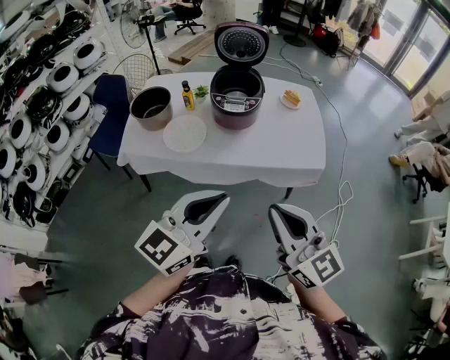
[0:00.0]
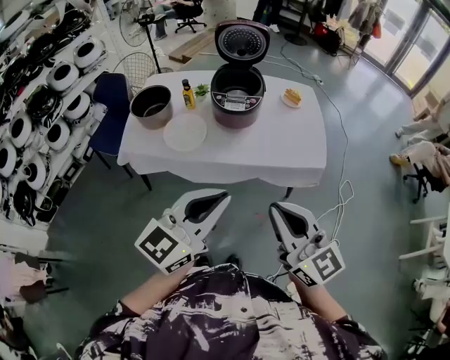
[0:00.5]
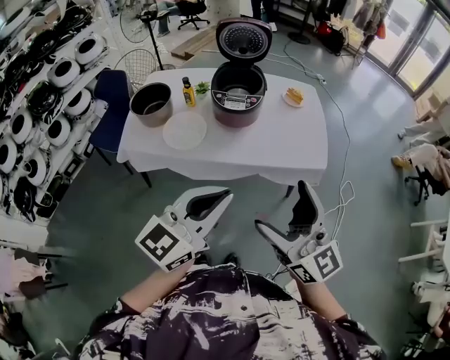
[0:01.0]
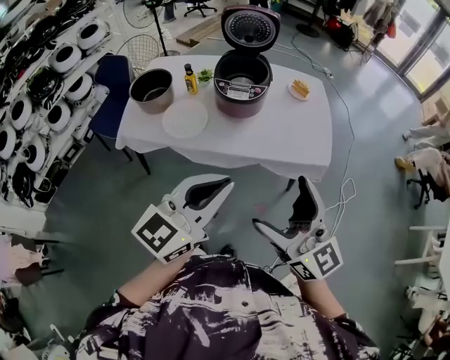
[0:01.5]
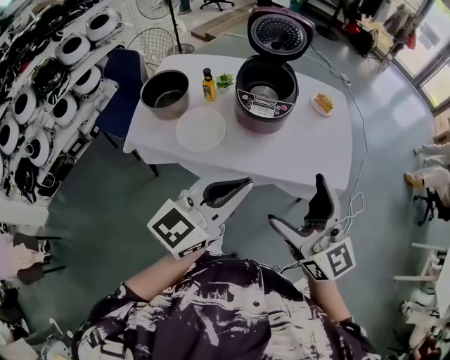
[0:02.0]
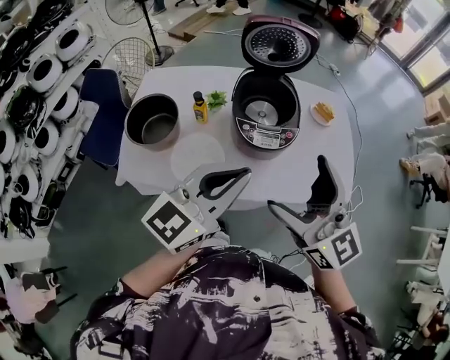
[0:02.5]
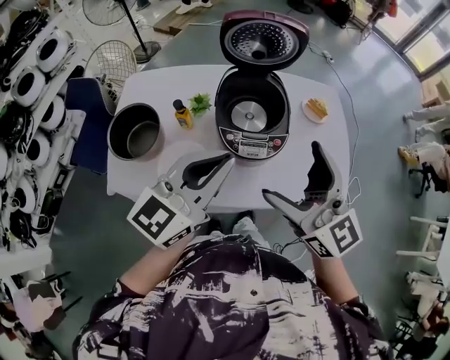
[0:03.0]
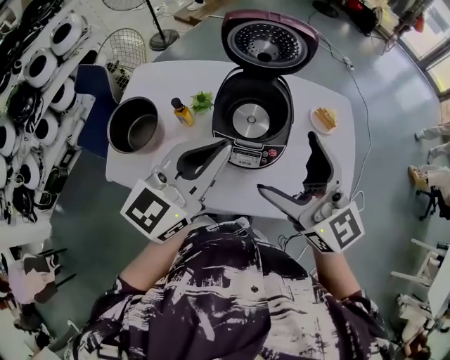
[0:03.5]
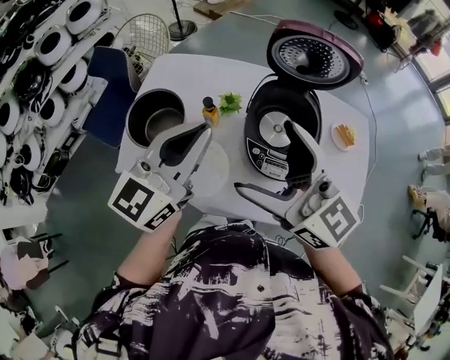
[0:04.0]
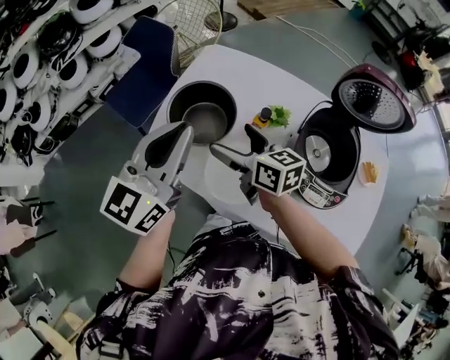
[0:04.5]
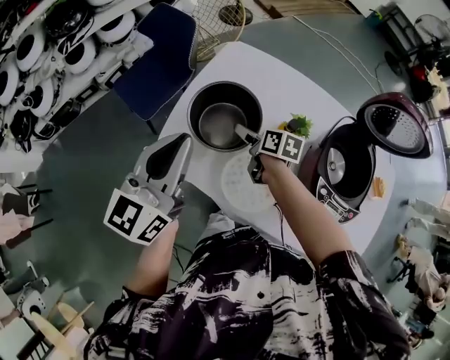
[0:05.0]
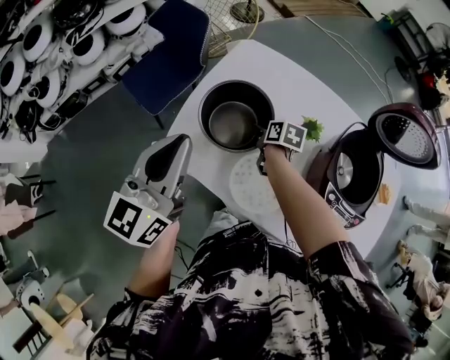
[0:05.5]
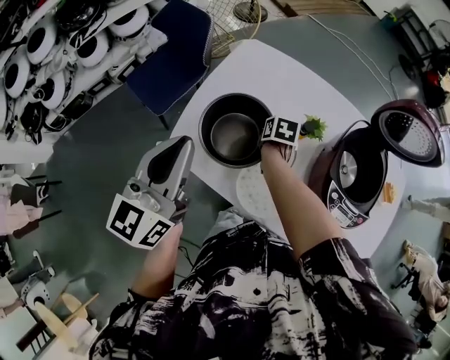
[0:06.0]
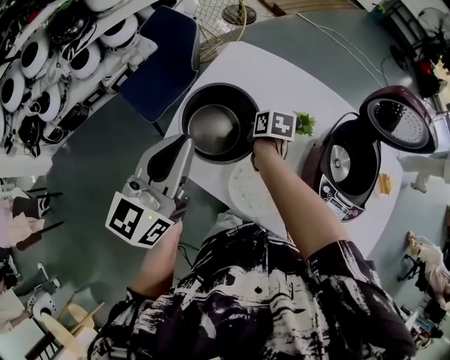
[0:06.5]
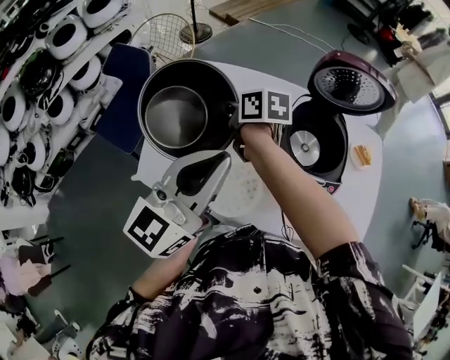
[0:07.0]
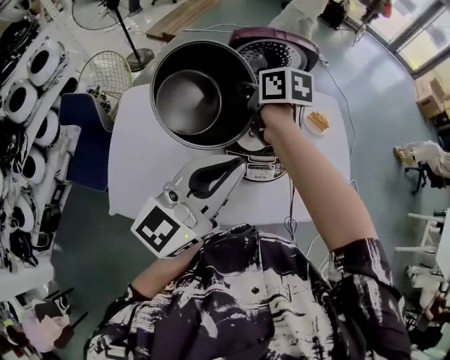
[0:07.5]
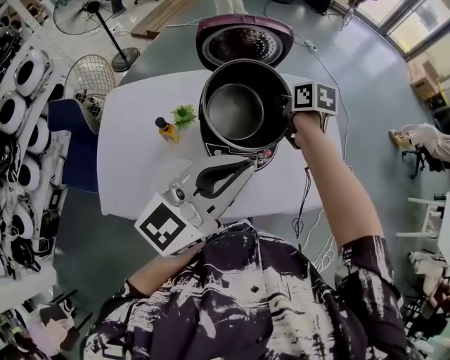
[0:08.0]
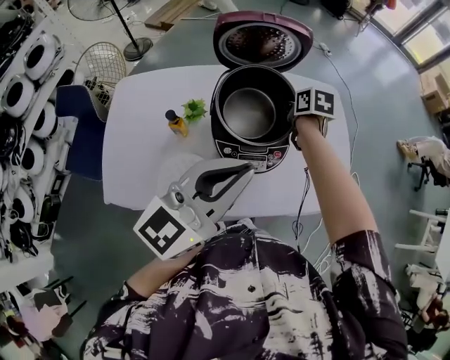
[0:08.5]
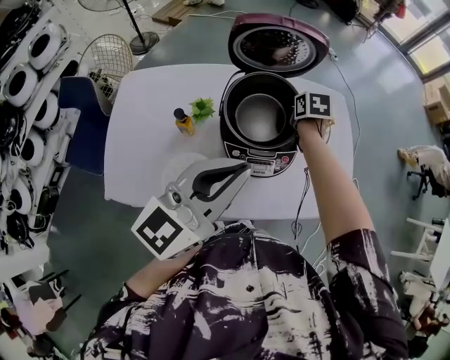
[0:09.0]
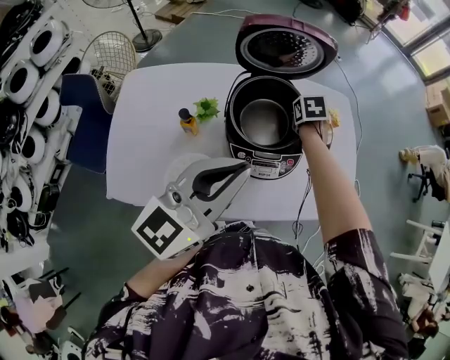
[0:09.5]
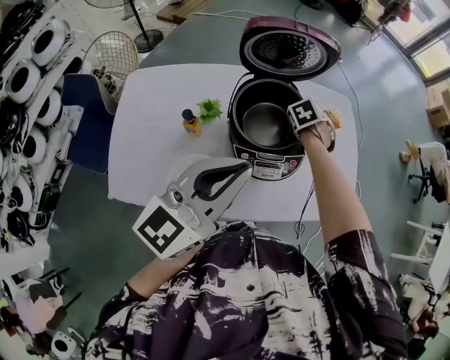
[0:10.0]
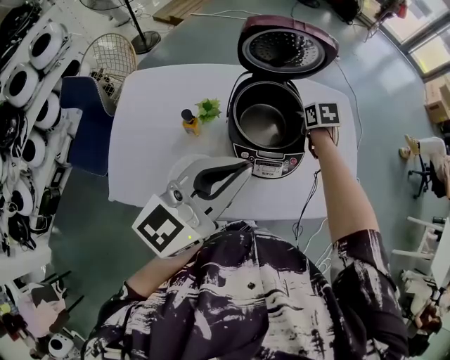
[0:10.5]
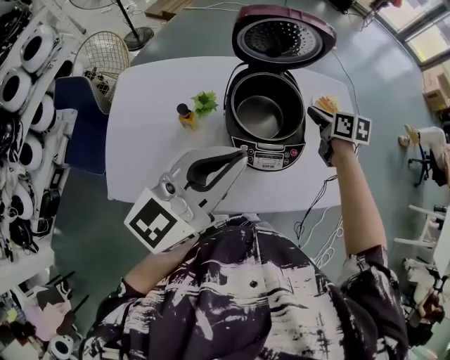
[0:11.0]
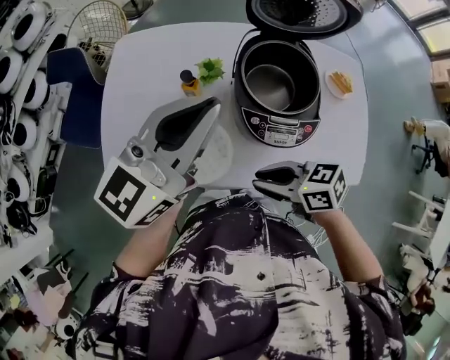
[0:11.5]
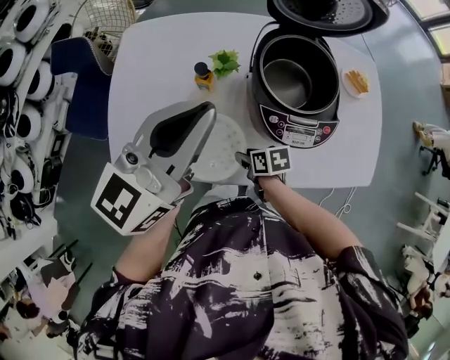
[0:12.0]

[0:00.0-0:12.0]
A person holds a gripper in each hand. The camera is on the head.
0:00.0 to 0:02.0: The two grippers go approximately 15 cm forward. The right gripper opens up.
0:02.0 to 0:04.0: The two grippers go about 35 cm forward and to the left.
0:04.0 to 0:06.0: The left gripper heads to the left, covering some 30 cm, and swivels roughly 30 degrees. The right gripper is displaced downward and forward by approximately 50 cm, angles its fingers downward, by approximately 70 degrees, and closes its fingers.
0:06.0 to 0:08.0: The two grippers travel together, roughly 50 cm. The left gripper turns by about 60 degrees, while the right gripper changes its angle by roughly 30 degrees.
0:08.0 to 0:10.0: The left gripper travels to the left by some 10 cm, while the right gripper shifts roughly 10 cm downward, and changes its angle by some 50 degrees.
0:10.0 to 0:12.0: The right gripper ends up some 40 cm from where it was, and rotates roughly 50 degrees; the left gripper moves roughly 15 cm.

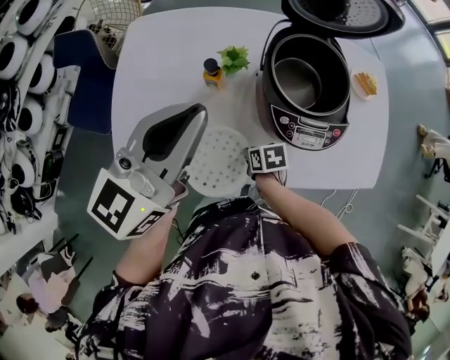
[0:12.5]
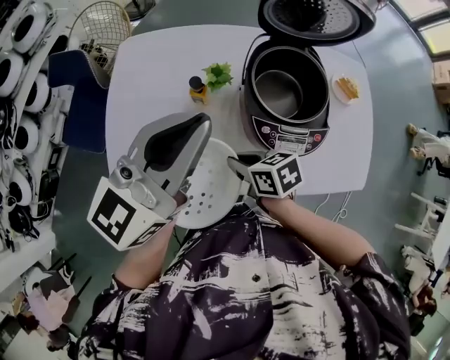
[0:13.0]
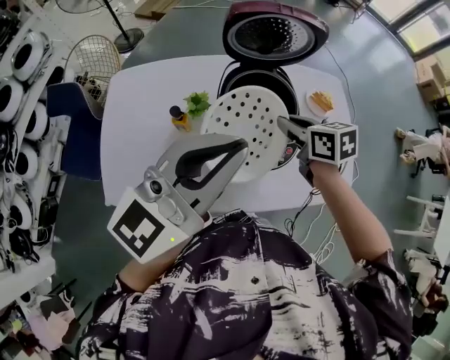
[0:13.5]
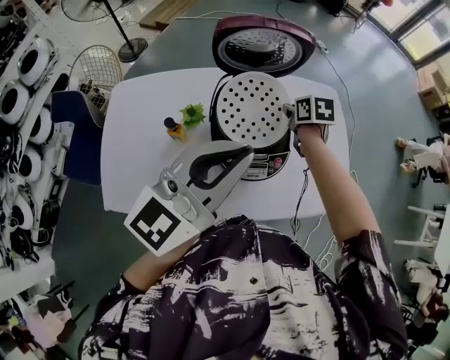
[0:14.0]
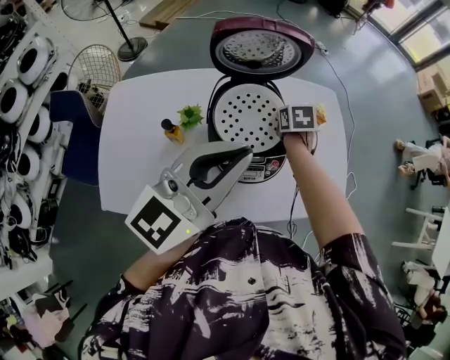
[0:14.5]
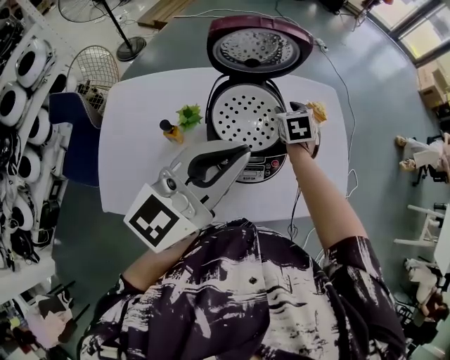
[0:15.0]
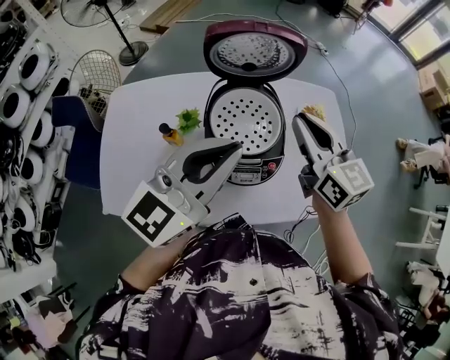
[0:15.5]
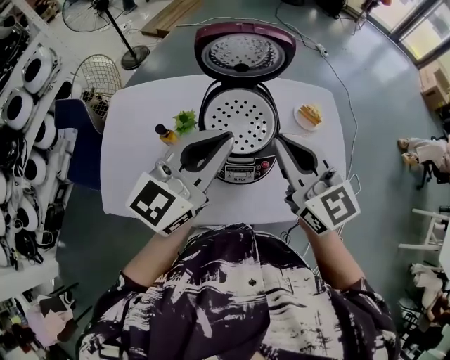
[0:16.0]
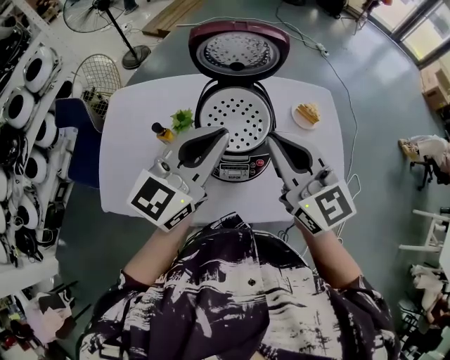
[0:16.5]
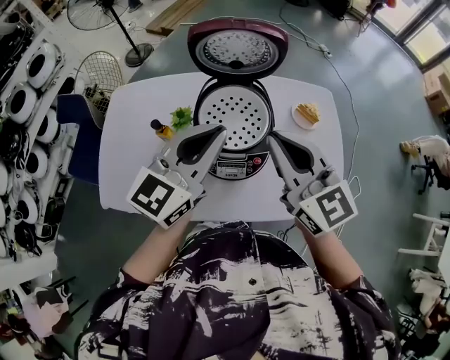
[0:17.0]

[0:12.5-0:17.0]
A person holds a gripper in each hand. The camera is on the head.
0:12.5 to 0:14.5: The right gripper moves roughly 40 cm, and swivels about 30 degrees. The left gripper moves roughly 20 cm.
0:14.5 to 0:17.0: The left gripper moves approximately 5 cm. Meanwhile the right gripper is displaced upward and backward by roughly 30 cm, and tips its fingers upward by about 50 degrees.

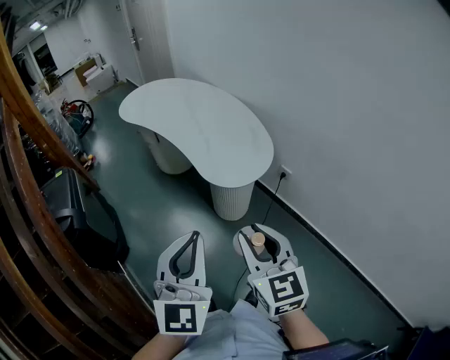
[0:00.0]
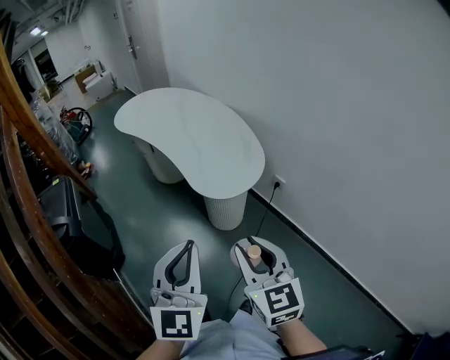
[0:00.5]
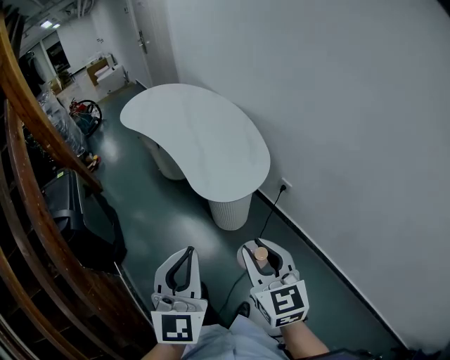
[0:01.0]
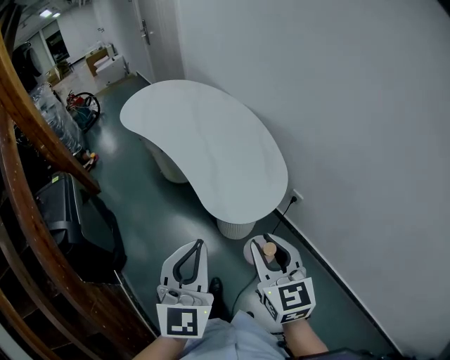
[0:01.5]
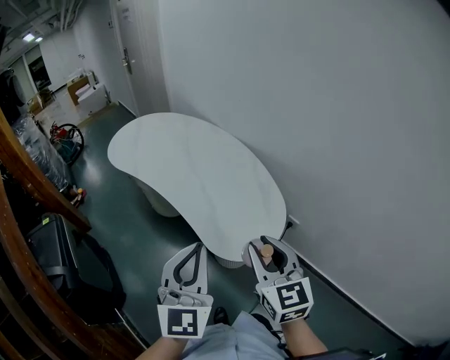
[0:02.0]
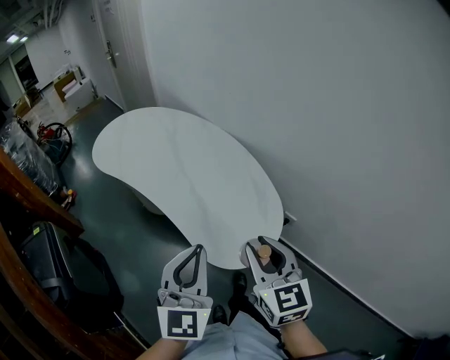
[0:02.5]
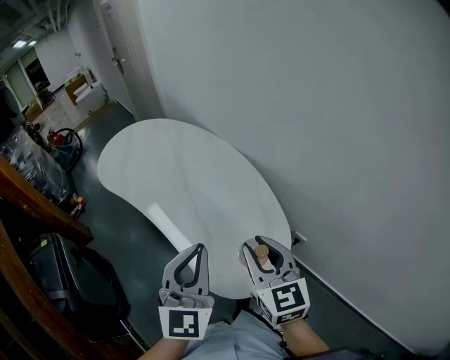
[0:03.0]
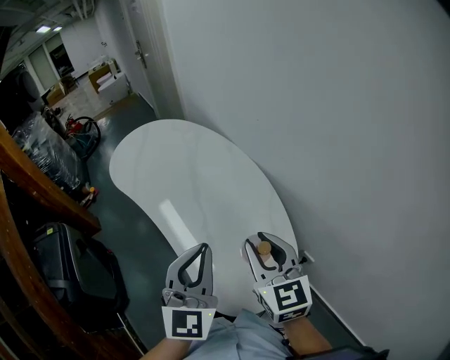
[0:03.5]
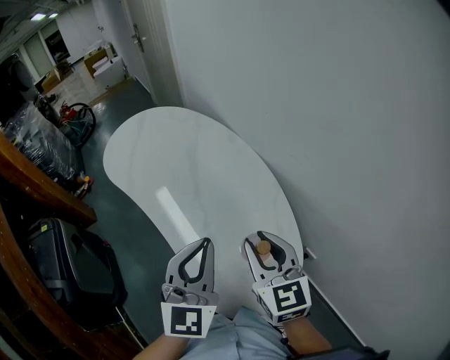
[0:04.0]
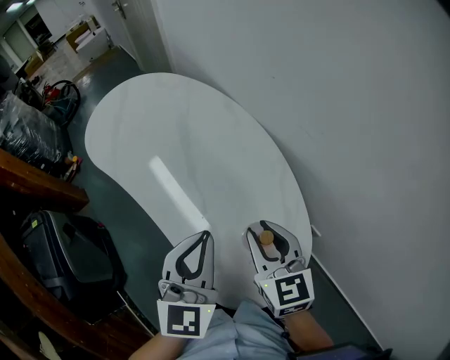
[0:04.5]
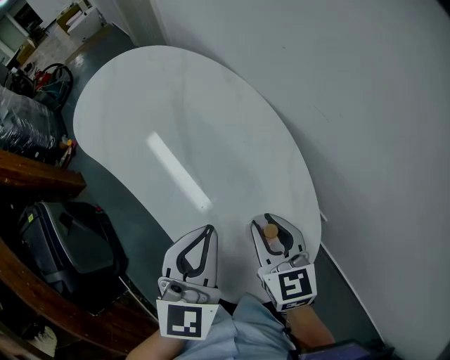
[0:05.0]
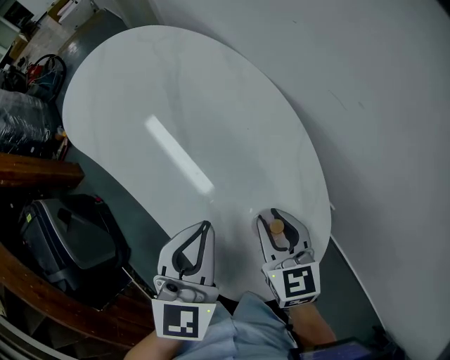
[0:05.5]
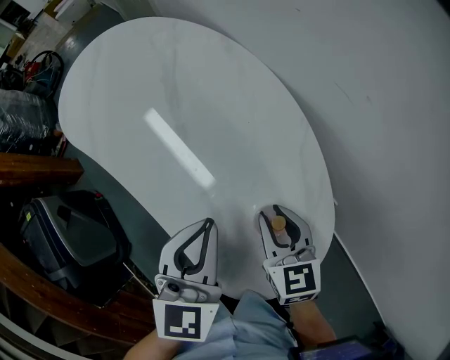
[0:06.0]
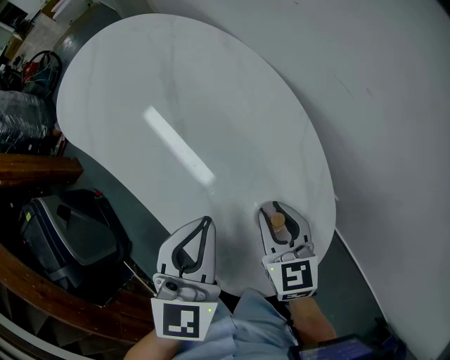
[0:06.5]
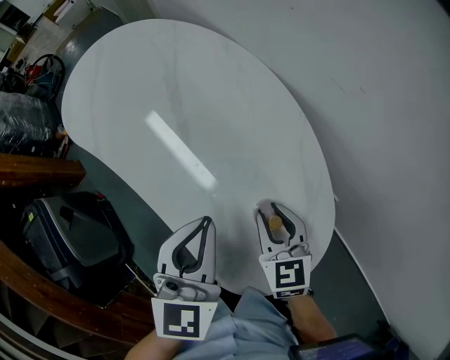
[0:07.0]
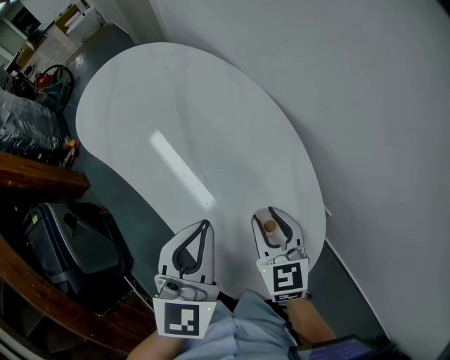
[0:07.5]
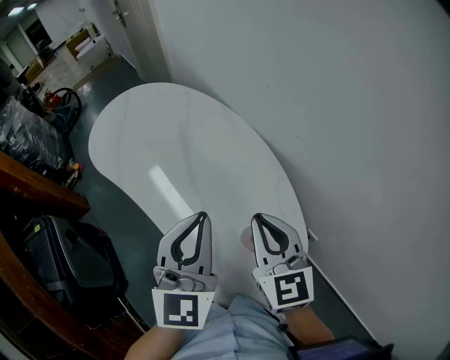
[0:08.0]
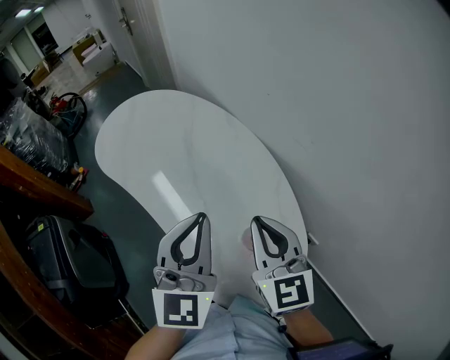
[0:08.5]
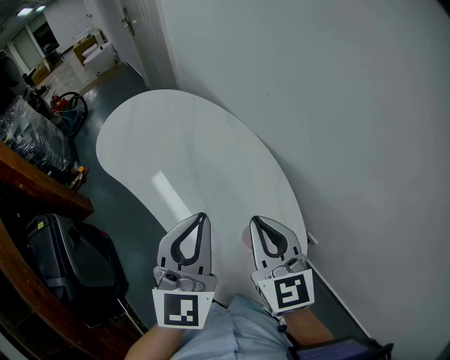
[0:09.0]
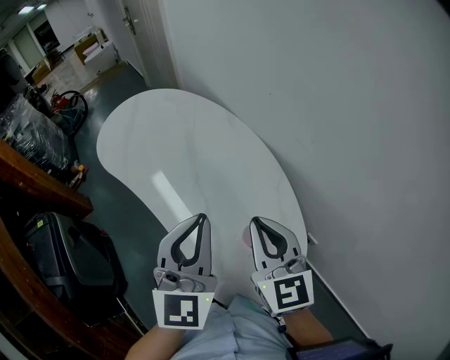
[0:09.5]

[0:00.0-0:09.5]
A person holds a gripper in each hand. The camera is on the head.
0:00.0 to 0:02.0: The grippers both shift forward by roughly 20 cm. The left gripper swivels about 20 degrees.
0:02.0 to 0:04.0: The two grippers go some 20 cm forward.
0:04.0 to 0:05.5: The grippers both shift downward by about 10 cm. The left gripper changes its angle by approximately 30 degrees.
0:05.5 to 0:07.5: The grippers make only small movements.
0:07.5 to 0:09.5: The right gripper shifts about 15 cm upward, changes its angle by about 20 degrees, and closes its fingers; the left gripper heads upward, covering approximately 10 cm.

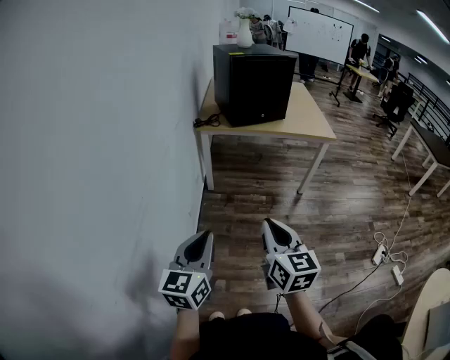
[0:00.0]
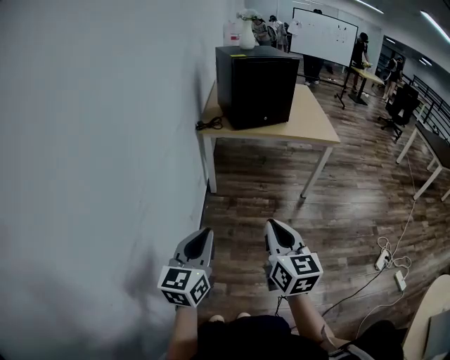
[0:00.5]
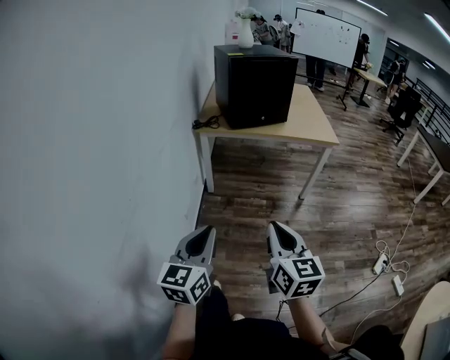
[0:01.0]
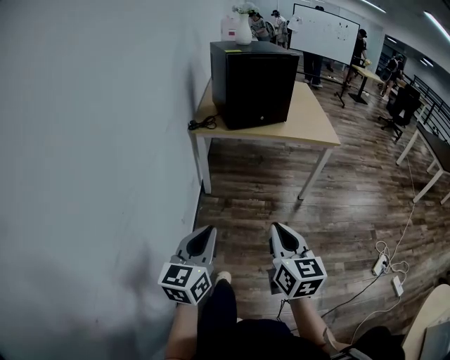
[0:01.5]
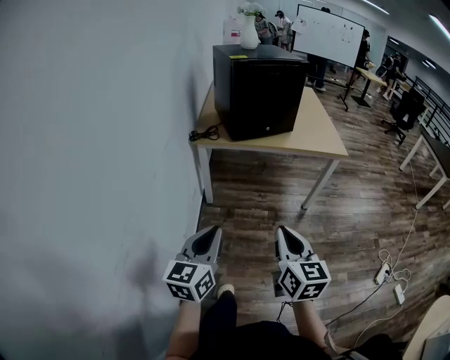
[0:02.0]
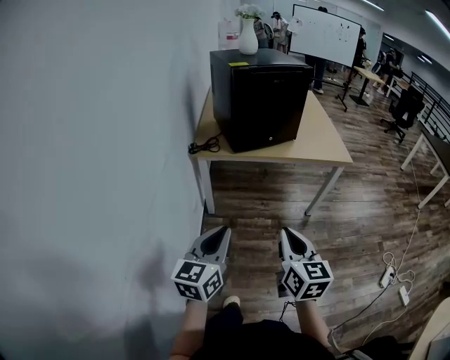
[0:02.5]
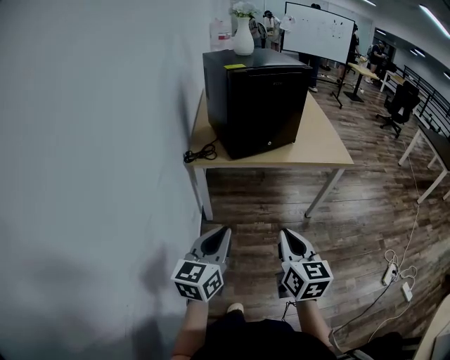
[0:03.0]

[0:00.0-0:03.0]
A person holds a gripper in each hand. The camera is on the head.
0:00.0 to 0:01.5: Both grippers move forward and to the right, roughly 10 cm.
0:01.5 to 0:03.0: The two grippers go roughly 25 cm forward.
